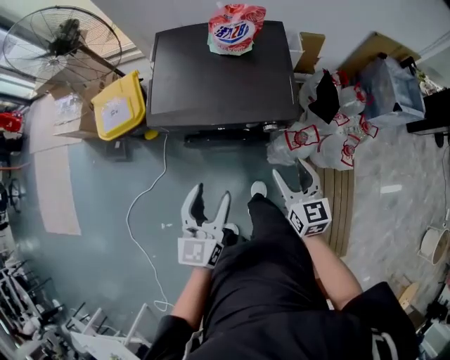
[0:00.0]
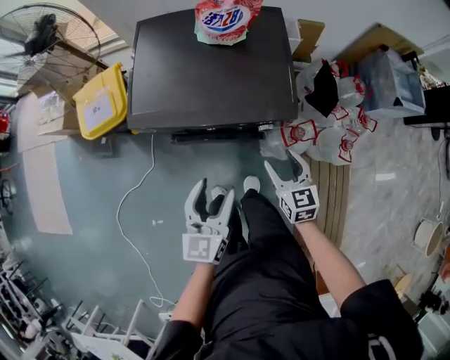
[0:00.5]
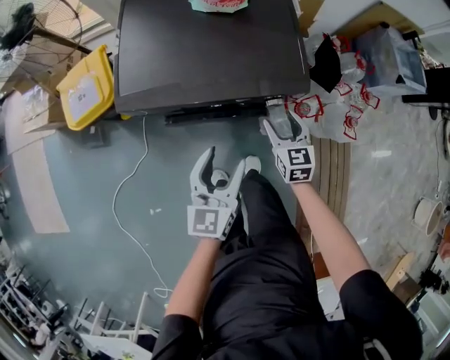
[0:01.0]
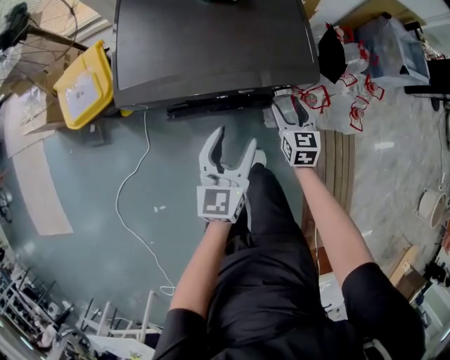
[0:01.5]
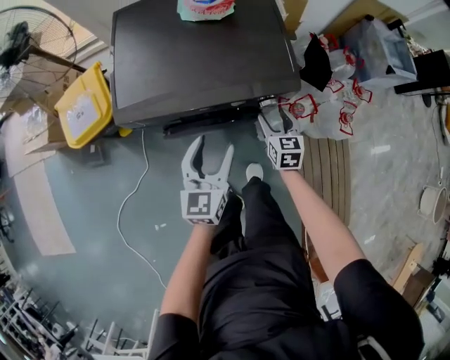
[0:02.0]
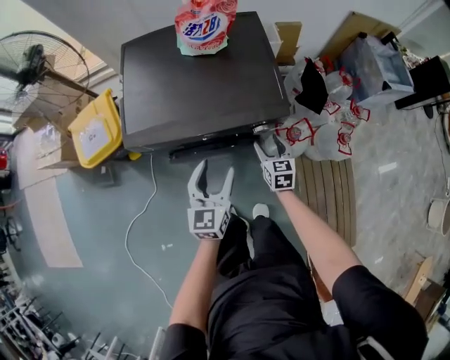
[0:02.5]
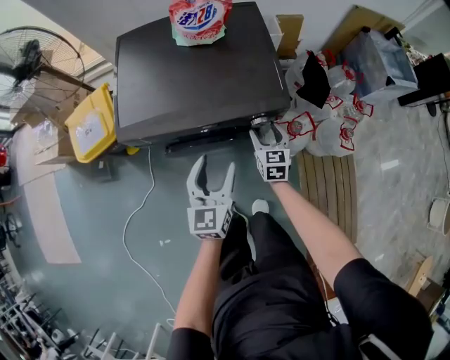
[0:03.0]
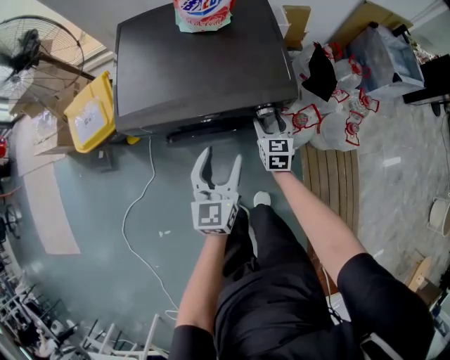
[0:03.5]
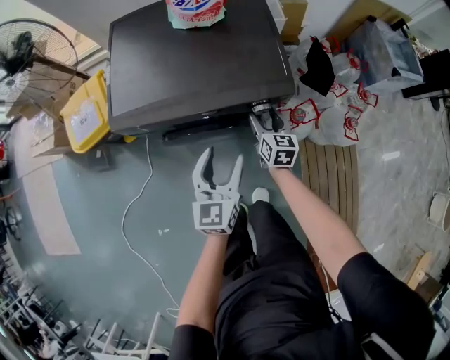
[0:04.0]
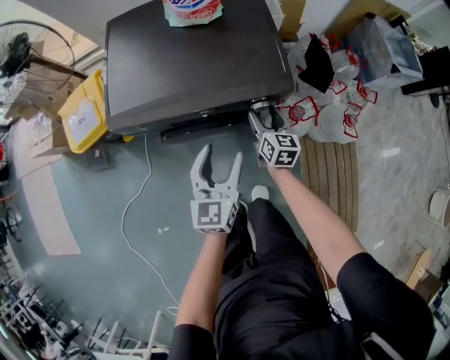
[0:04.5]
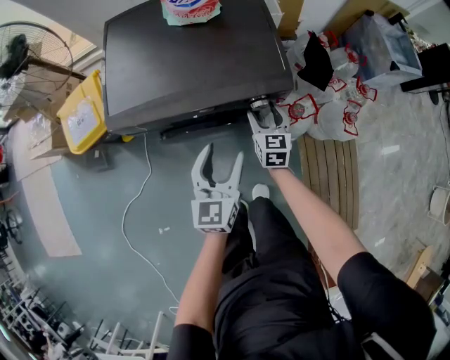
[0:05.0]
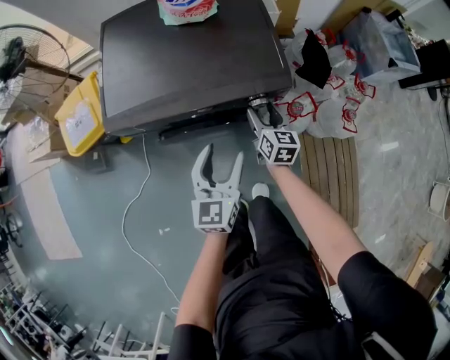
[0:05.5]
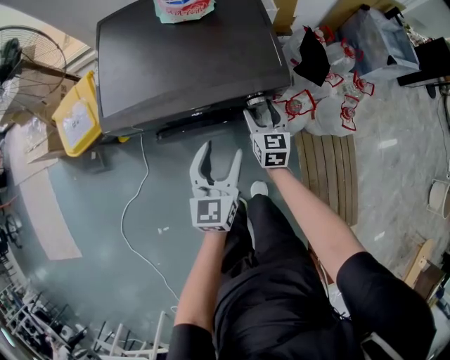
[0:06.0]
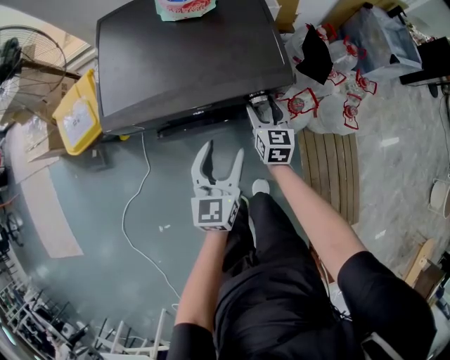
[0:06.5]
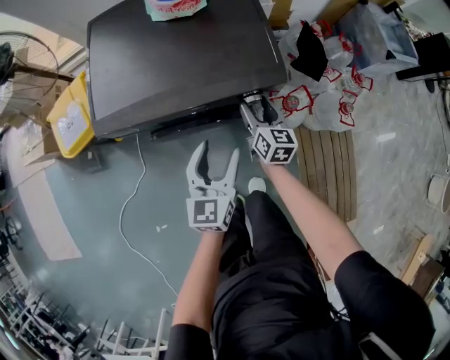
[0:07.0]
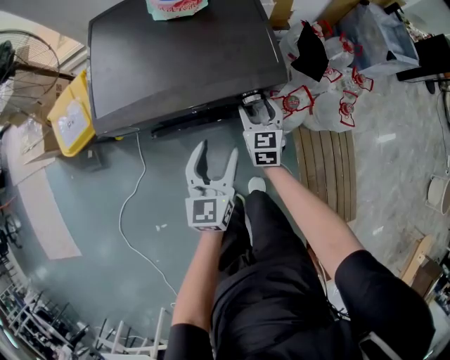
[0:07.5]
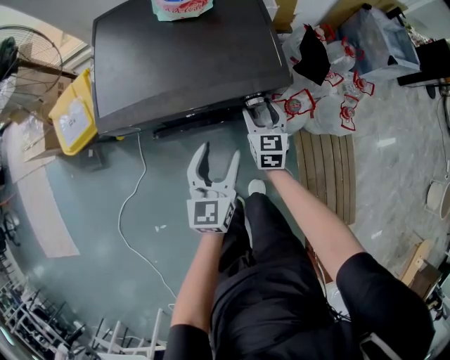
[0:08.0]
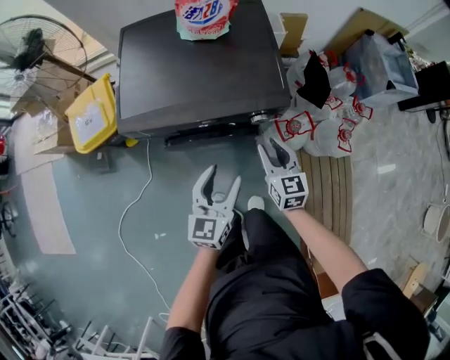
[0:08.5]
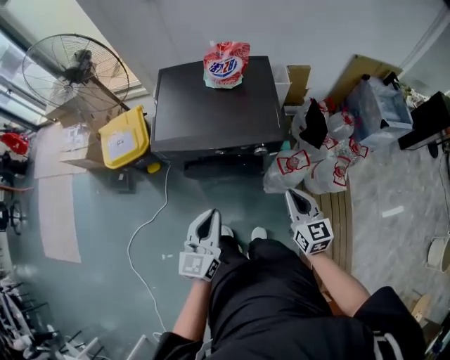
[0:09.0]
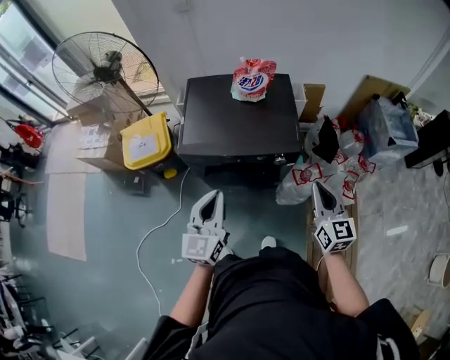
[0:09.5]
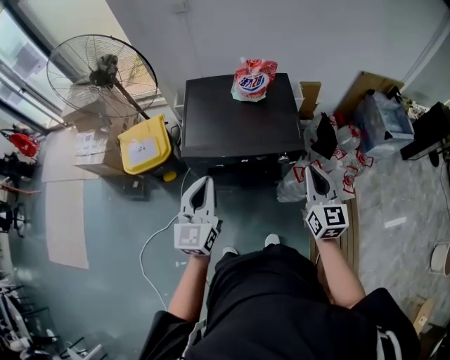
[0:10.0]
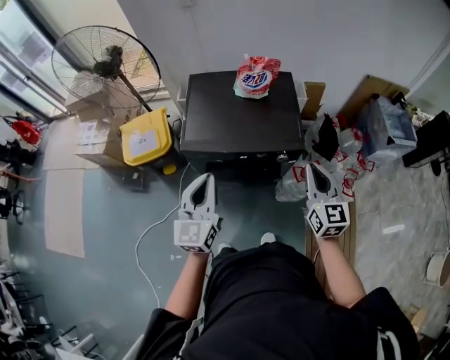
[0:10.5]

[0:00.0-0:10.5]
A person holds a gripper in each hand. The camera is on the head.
0:00.0 to 0:02.0: The two grippers go some 20 cm downward and forward.
0:02.0 to 0:04.0: The left gripper is displaced to the right by about 5 cm.
0:04.0 to 0:06.5: The grippers move only a little.
0:06.5 to 0:08.5: The right gripper travels backward and upward by about 10 cm, and closes up; the left gripper ends up approximately 5 cm from where it was.
0:08.5 to 0:10.5: The left gripper is displaced upward and to the left by about 30 cm, and closes its fingers. Meanwhile the right gripper heads upward, covering some 30 cm, and closes its fingers.

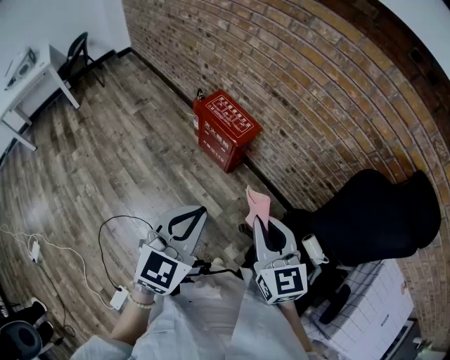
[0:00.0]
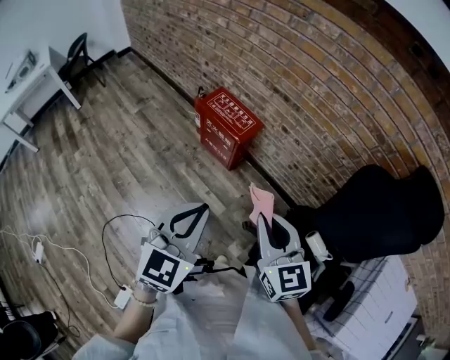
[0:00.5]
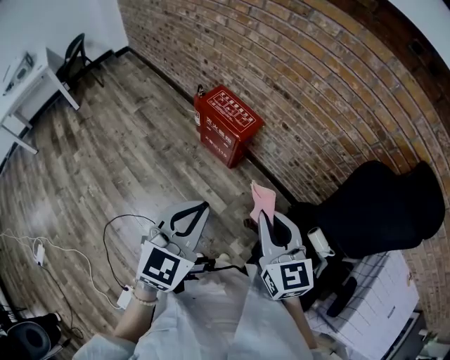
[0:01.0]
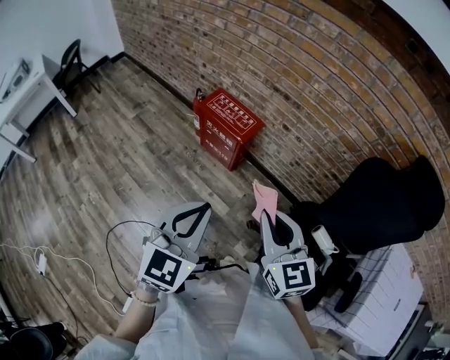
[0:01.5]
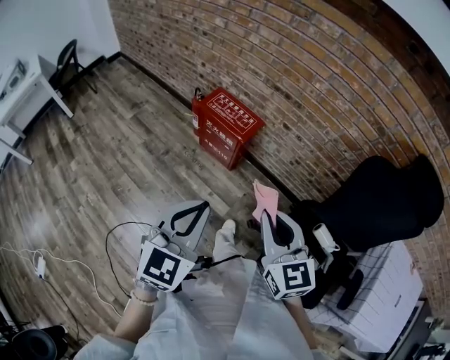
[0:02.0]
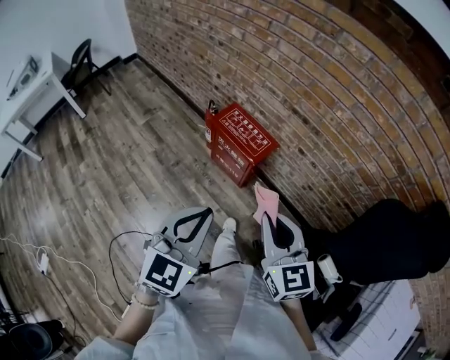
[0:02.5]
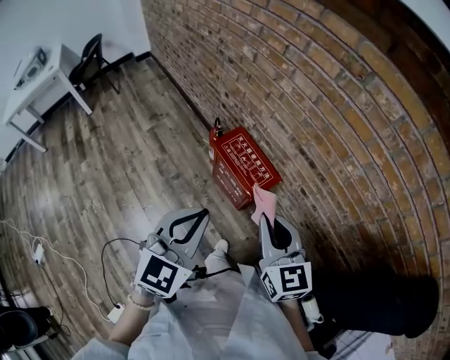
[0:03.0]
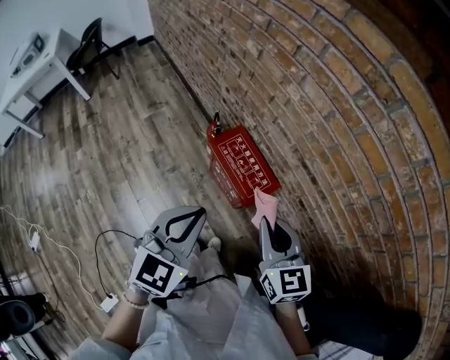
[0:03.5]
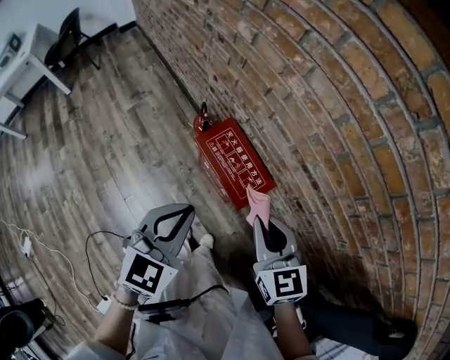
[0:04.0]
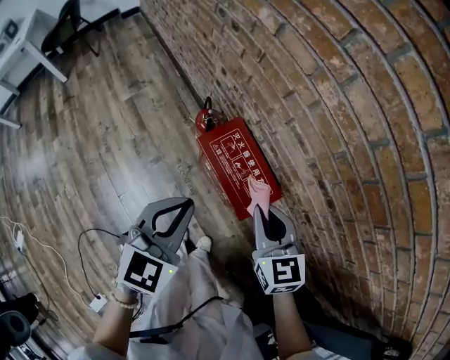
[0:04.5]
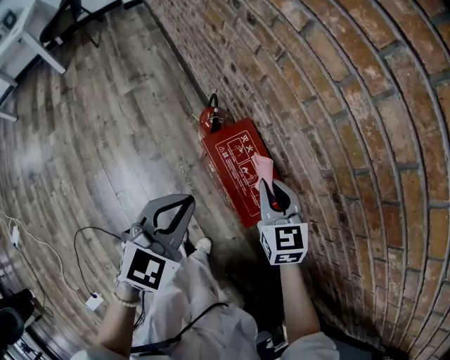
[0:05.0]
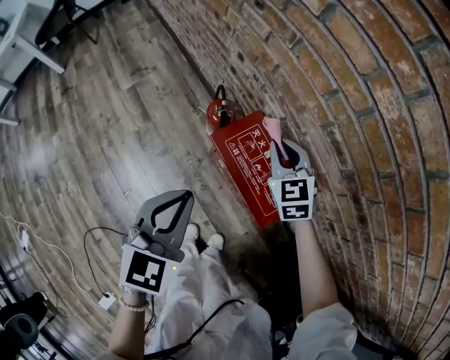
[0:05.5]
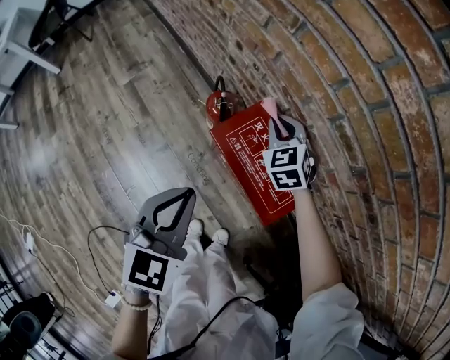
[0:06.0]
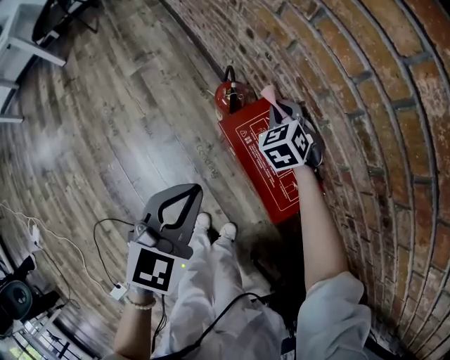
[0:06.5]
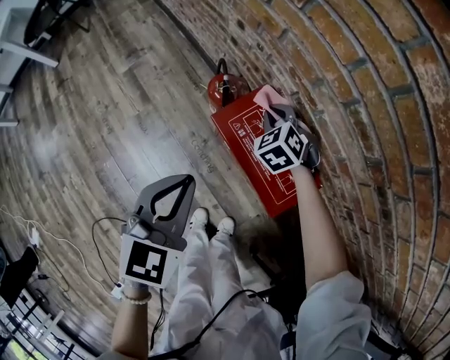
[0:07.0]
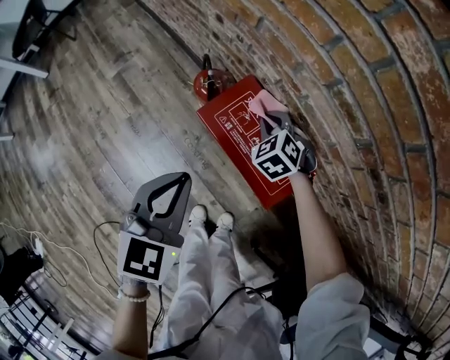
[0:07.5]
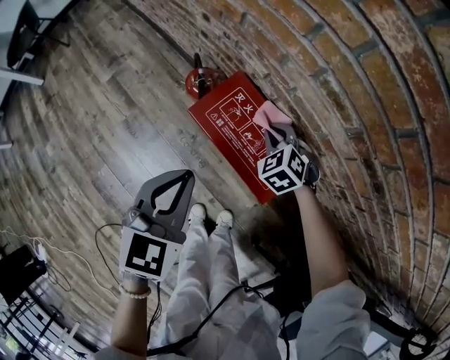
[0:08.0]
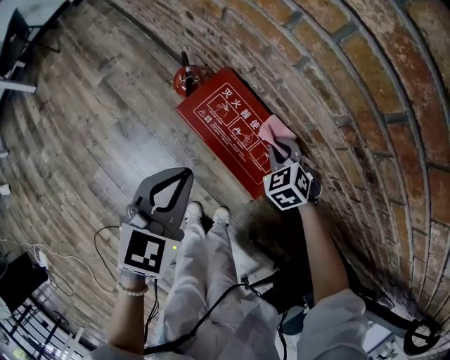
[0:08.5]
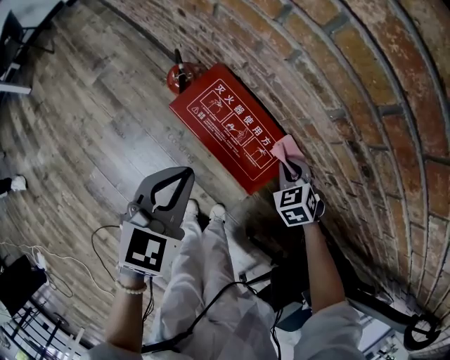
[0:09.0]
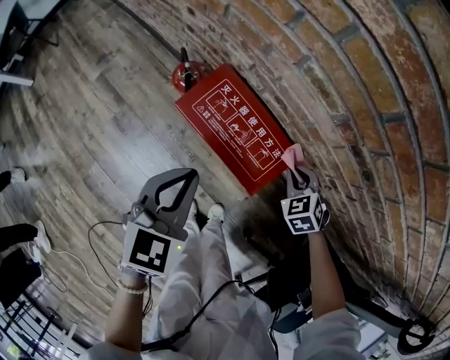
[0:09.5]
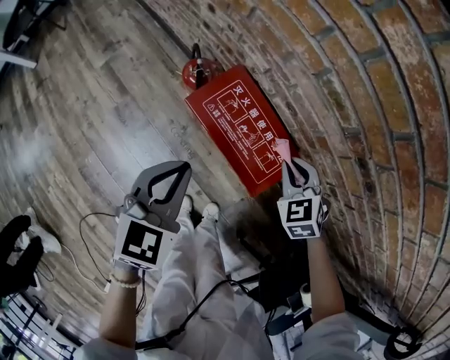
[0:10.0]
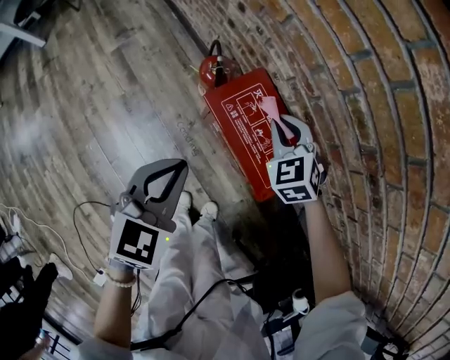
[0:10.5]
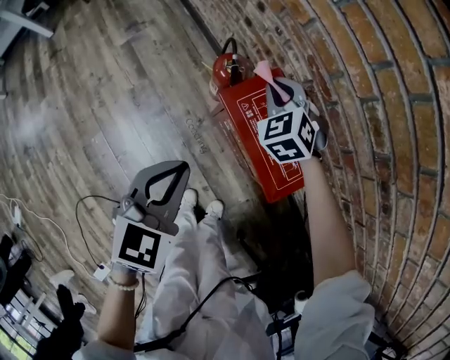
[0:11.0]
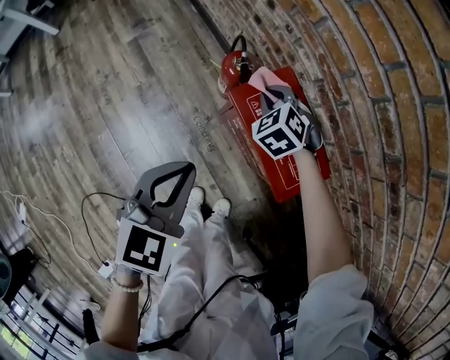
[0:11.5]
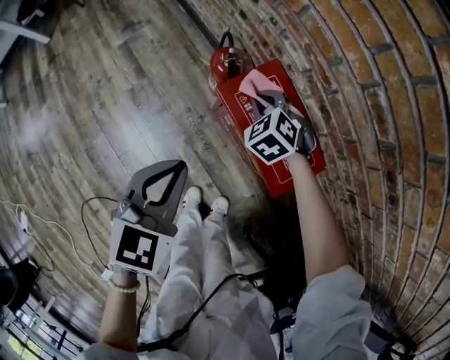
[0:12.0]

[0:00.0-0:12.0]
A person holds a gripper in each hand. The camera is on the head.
0:00.0 to 0:02.0: The left gripper goes about 5 cm to the left.
0:02.0 to 0:04.0: The pair of grippers is taken forward, roughly 40 cm.
0:04.0 to 0:06.0: The right gripper moves forward and downward, approximately 40 cm, and swivels approximately 30 degrees. The left gripper shifts about 20 cm downward, forward and to the left.
0:06.0 to 0:08.0: The right gripper heads downward, backward and to the right, covering approximately 15 cm; the left gripper moves some 5 cm.
0:08.0 to 0:10.0: The right gripper moves backward, to the right and upward, approximately 10 cm.
0:10.0 to 0:12.0: The right gripper shifts about 20 cm to the left and forward, and swivels roughly 20 degrees. The left gripper goes some 5 cm to the left.

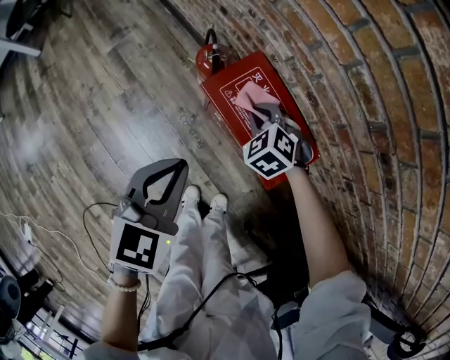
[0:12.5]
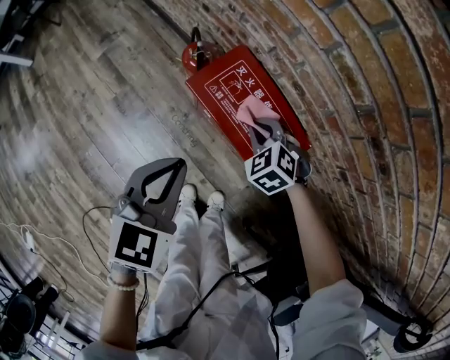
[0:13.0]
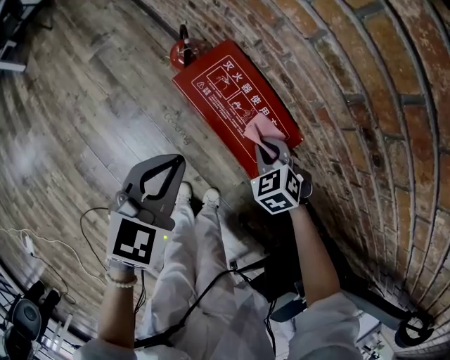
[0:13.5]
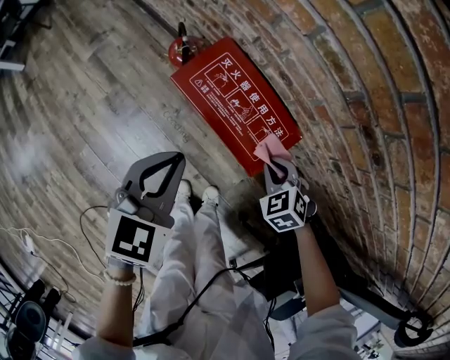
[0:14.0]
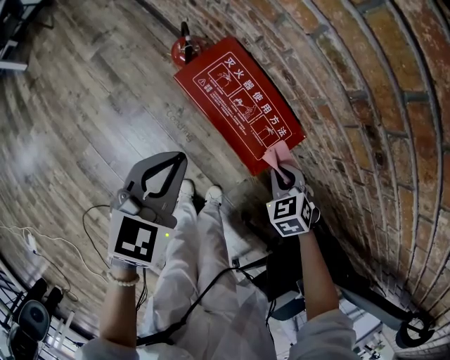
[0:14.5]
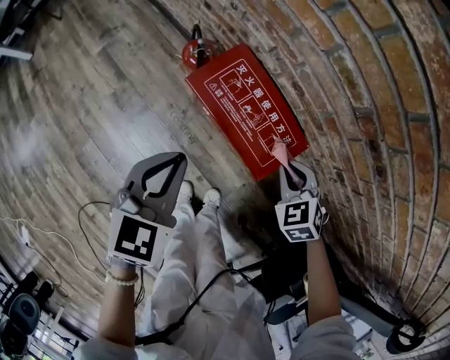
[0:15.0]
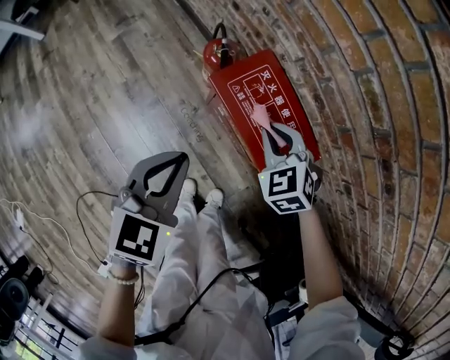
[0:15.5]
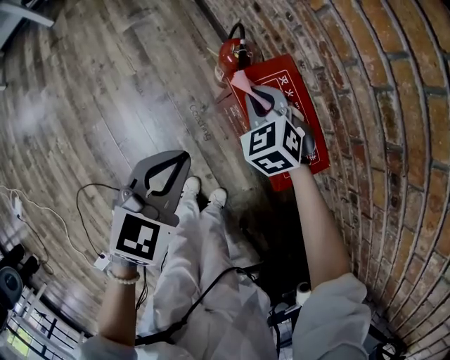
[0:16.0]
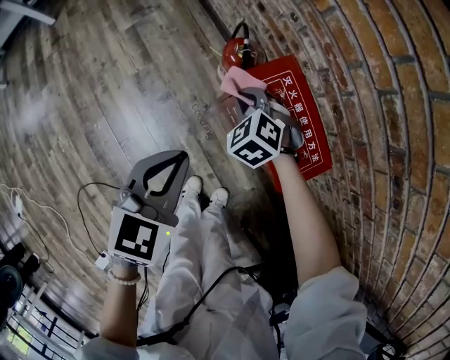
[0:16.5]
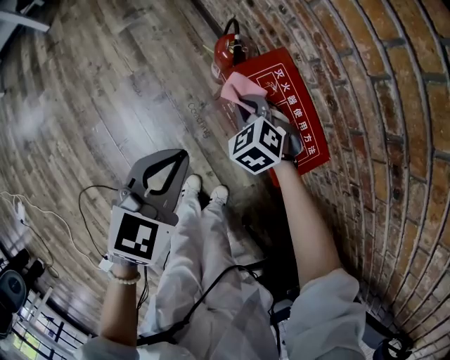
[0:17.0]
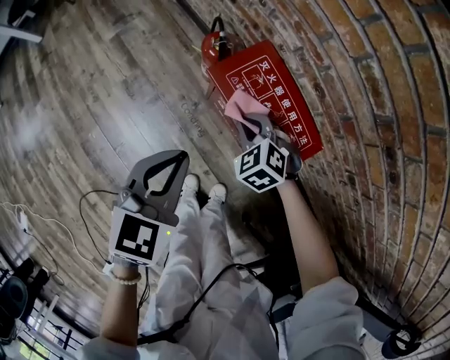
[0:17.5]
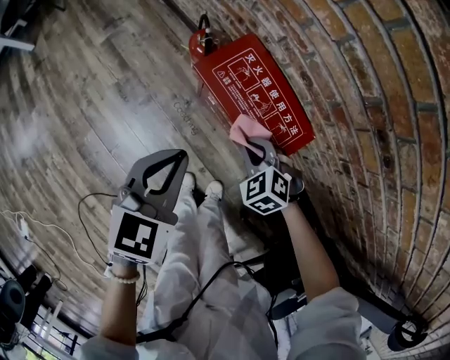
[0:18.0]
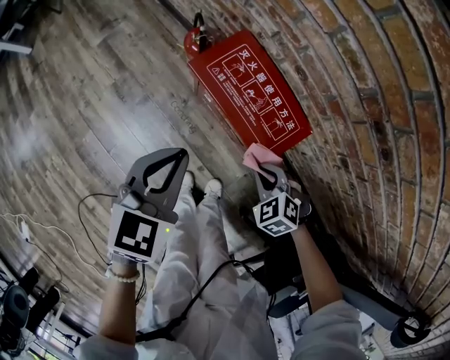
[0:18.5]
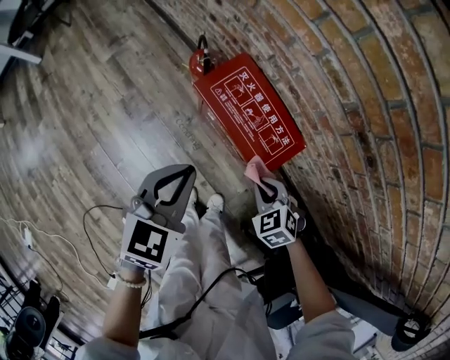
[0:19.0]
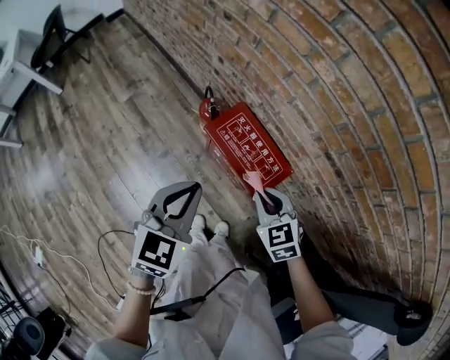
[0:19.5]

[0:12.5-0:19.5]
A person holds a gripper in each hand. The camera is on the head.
0:12.5 to 0:14.5: The left gripper shifts some 5 cm to the right; the right gripper travels to the right and backward by some 25 cm, and changes its angle by some 20 degrees.
0:14.5 to 0:16.0: The right gripper heads to the left and forward, covering about 30 cm, and turns by some 30 degrees. The left gripper shifts some 10 cm to the left.
0:16.0 to 0:17.5: The right gripper heads backward, downward and to the right, covering some 10 cm.
0:17.5 to 0:19.5: The right gripper goes some 25 cm upward and backward, and changes its angle by approximately 30 degrees; the left gripper shifts roughly 15 cm upward.
